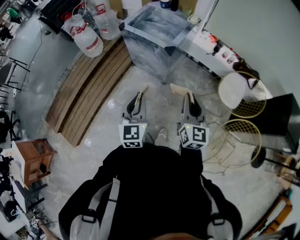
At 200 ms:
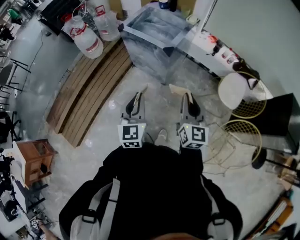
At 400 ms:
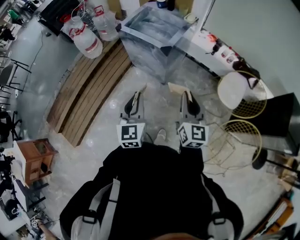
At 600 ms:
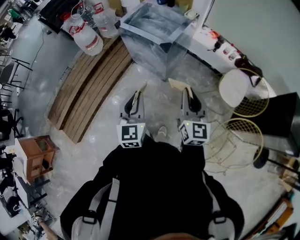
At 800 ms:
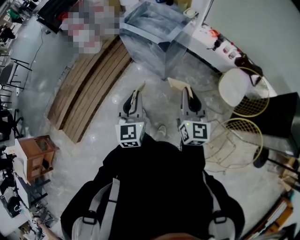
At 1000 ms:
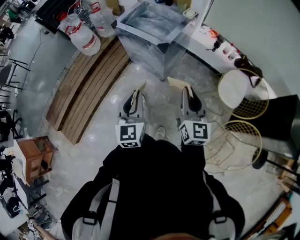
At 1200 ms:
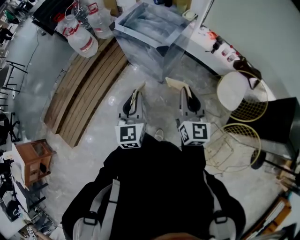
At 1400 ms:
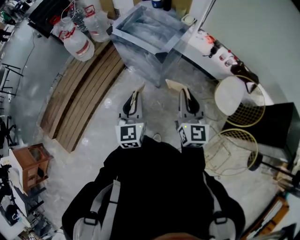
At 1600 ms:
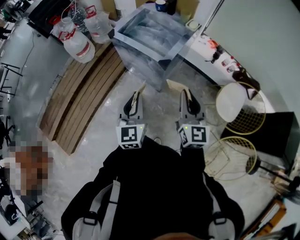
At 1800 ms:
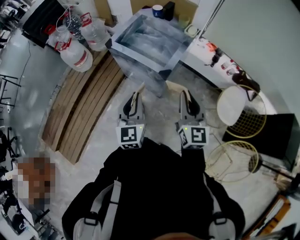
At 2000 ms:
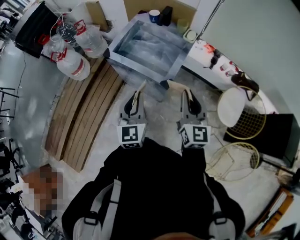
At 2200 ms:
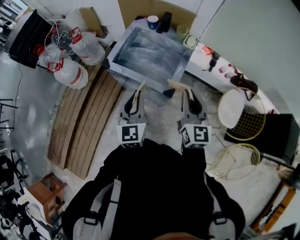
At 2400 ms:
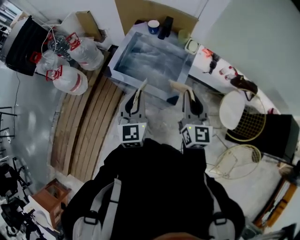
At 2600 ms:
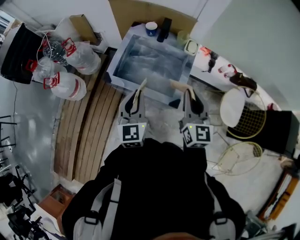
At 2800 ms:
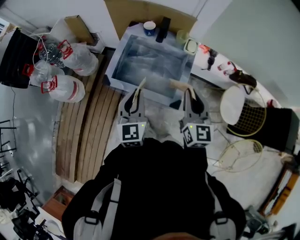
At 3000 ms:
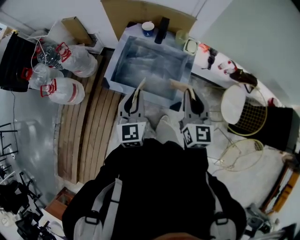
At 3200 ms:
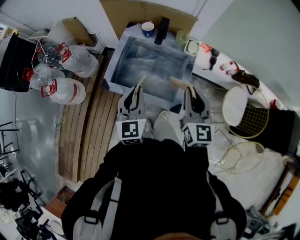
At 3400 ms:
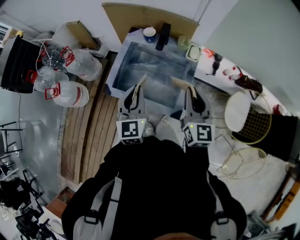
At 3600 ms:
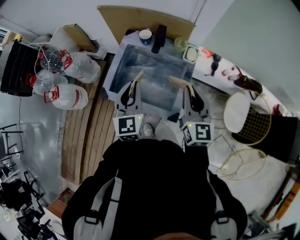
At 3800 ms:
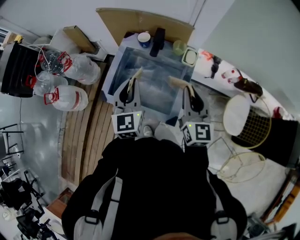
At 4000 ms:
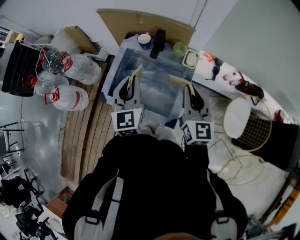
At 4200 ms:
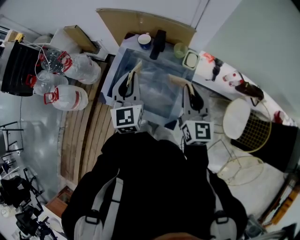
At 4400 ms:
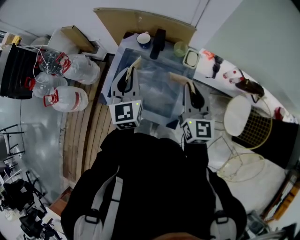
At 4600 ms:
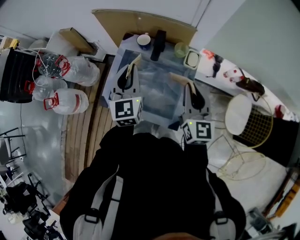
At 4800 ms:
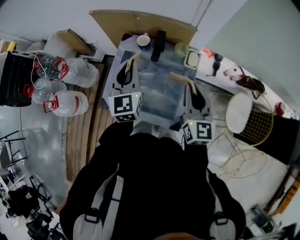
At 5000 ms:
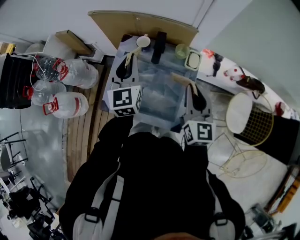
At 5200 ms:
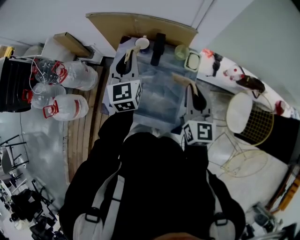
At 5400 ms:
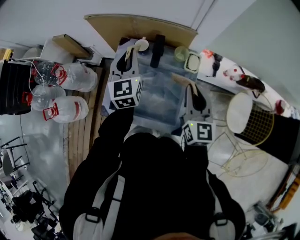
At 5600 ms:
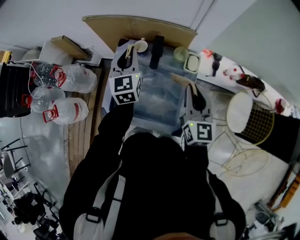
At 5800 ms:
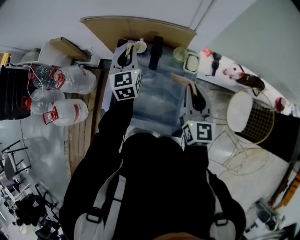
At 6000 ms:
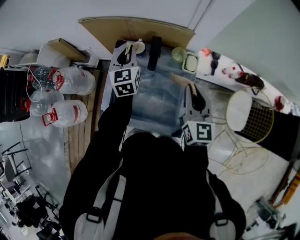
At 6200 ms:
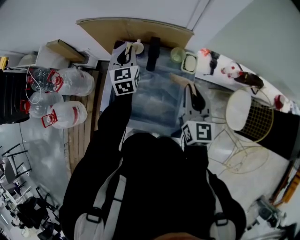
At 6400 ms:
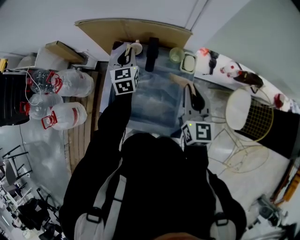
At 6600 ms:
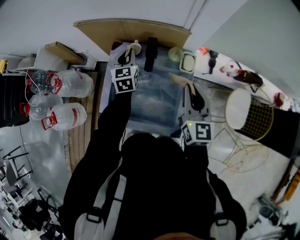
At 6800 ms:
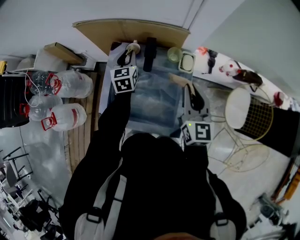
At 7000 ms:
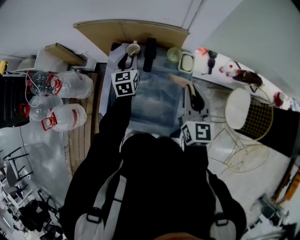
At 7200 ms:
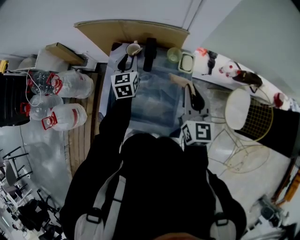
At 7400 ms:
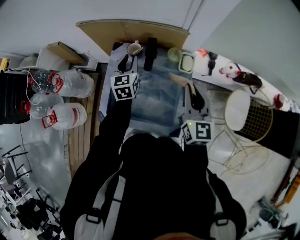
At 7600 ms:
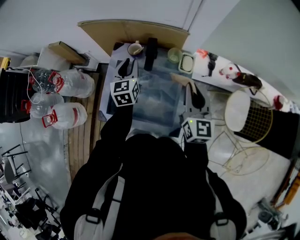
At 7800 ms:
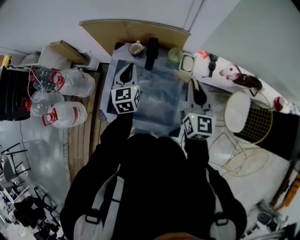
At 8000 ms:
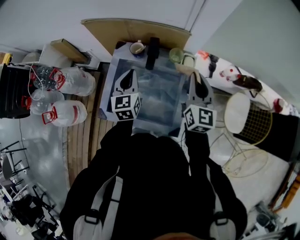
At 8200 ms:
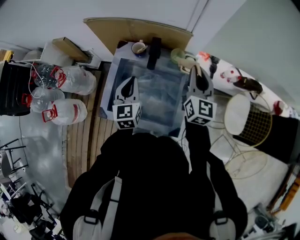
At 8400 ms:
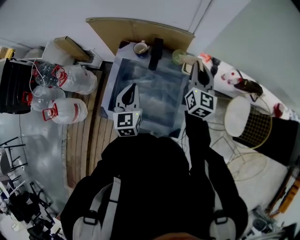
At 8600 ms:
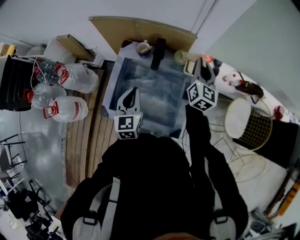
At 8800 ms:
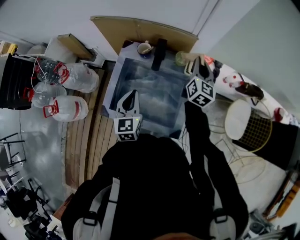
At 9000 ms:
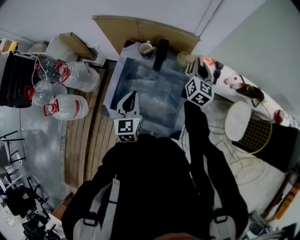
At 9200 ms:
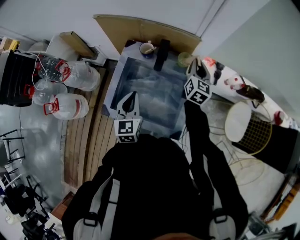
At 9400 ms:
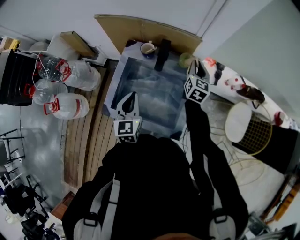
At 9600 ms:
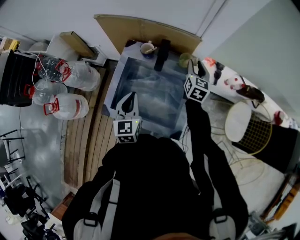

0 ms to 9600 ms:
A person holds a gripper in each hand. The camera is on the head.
0 ms to 1600 ms: The grippers both shift forward by approximately 15 cm.
1600 ms to 3200 ms: Both grippers move forward, approximately 35 cm.
3200 ms to 4800 ms: The left gripper is displaced forward by about 20 cm; the right gripper goes about 15 cm forward.
4800 ms to 6400 ms: The left gripper is displaced forward and downward by roughly 20 cm; the right gripper goes some 5 cm forward.
6400 ms to 8000 ms: The left gripper travels backward by roughly 10 cm.
8000 ms to 9600 ms: The left gripper travels backward by roughly 10 cm, while the right gripper moves forward and downward, approximately 15 cm, and opens its fingers.

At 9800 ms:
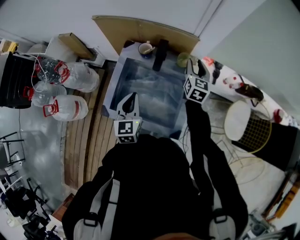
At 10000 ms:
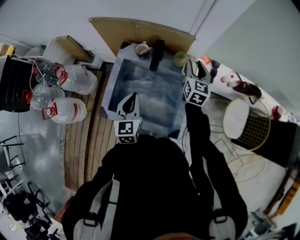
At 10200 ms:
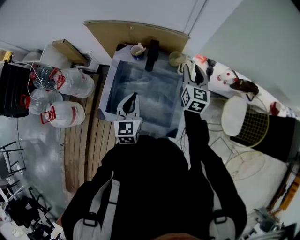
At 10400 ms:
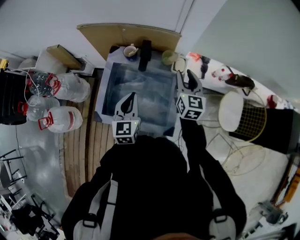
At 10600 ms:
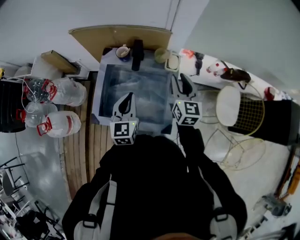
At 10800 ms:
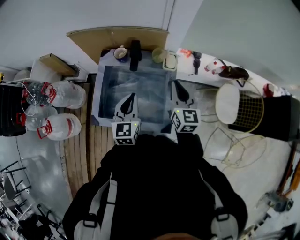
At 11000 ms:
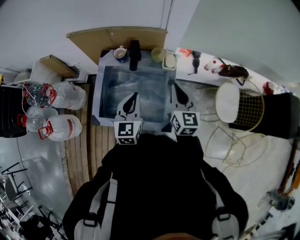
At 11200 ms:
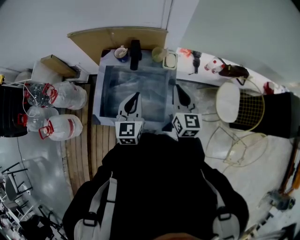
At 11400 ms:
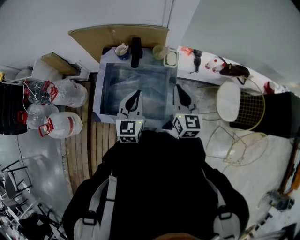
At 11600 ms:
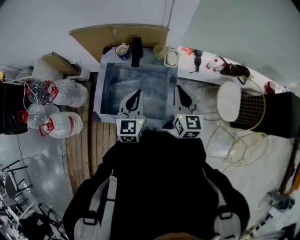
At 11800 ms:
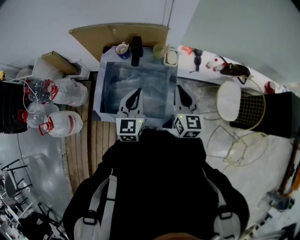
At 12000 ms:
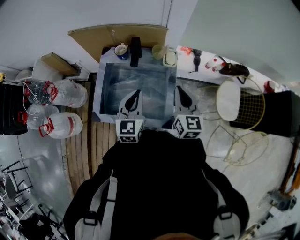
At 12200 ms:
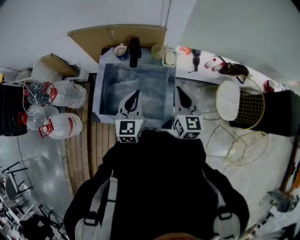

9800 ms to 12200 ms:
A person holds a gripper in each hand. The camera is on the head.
9800 ms to 11000 ms: The left gripper moves to the right, roughly 10 cm, while the right gripper goes roughly 20 cm backward, and closes its fingers.
11000 ms to 12200 ms: There are only small adjustments of the grippers.

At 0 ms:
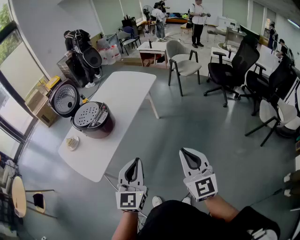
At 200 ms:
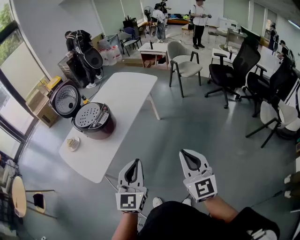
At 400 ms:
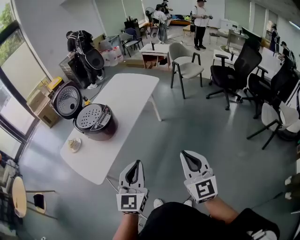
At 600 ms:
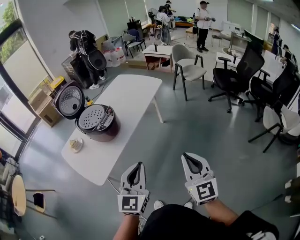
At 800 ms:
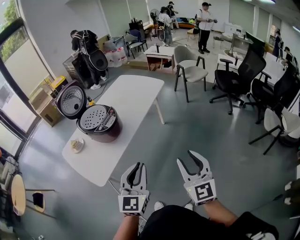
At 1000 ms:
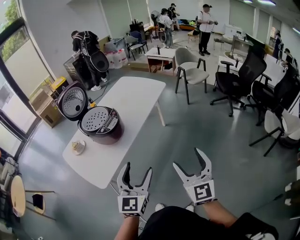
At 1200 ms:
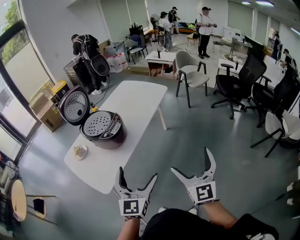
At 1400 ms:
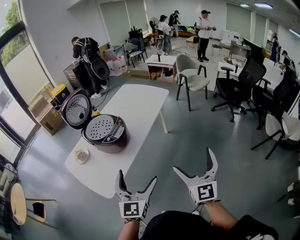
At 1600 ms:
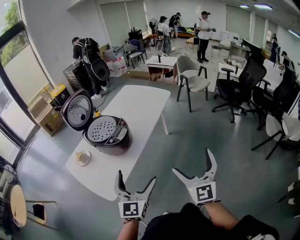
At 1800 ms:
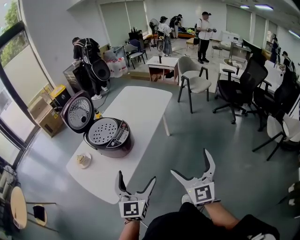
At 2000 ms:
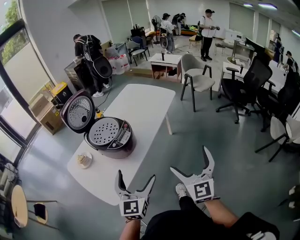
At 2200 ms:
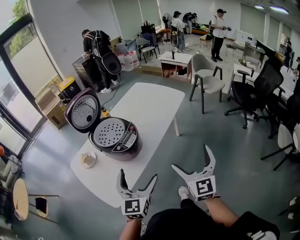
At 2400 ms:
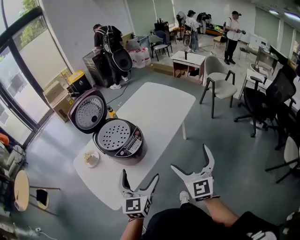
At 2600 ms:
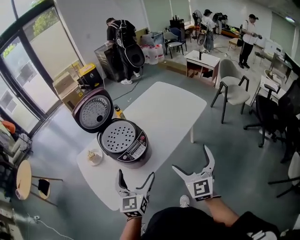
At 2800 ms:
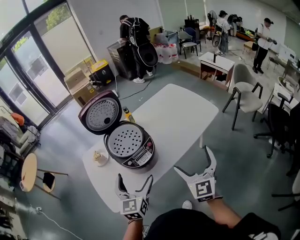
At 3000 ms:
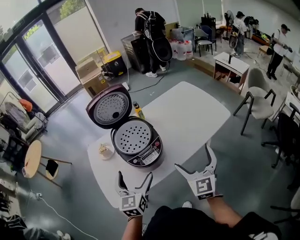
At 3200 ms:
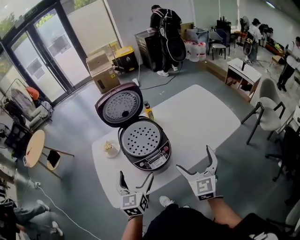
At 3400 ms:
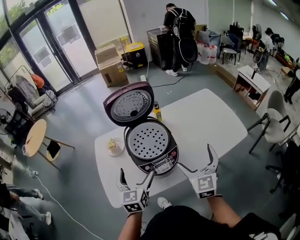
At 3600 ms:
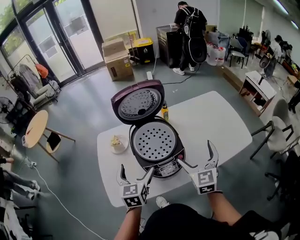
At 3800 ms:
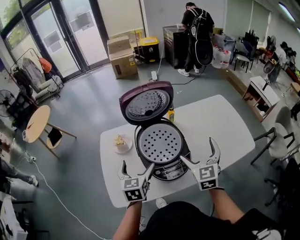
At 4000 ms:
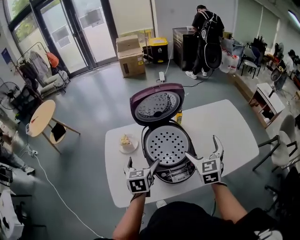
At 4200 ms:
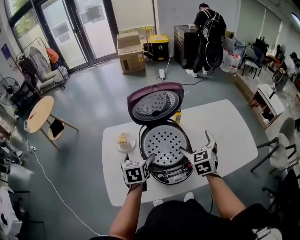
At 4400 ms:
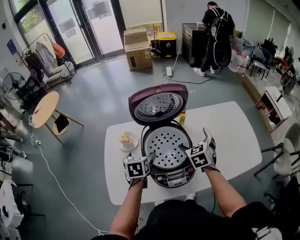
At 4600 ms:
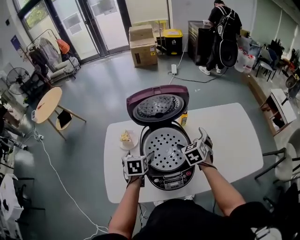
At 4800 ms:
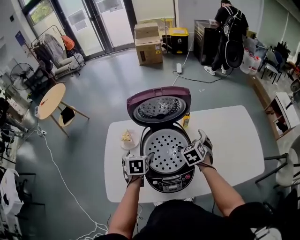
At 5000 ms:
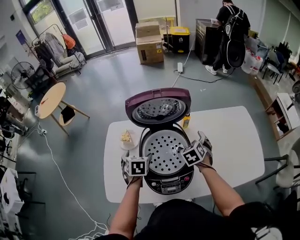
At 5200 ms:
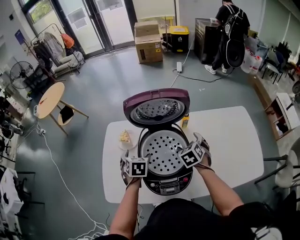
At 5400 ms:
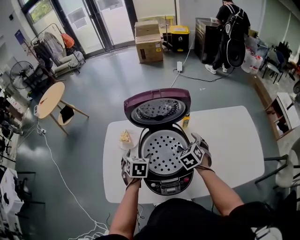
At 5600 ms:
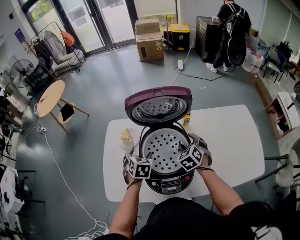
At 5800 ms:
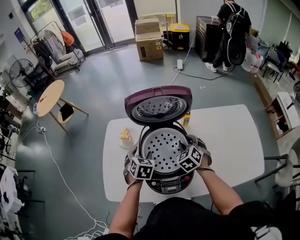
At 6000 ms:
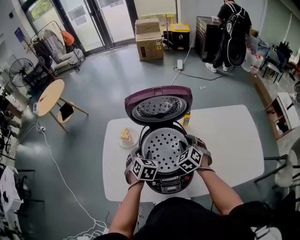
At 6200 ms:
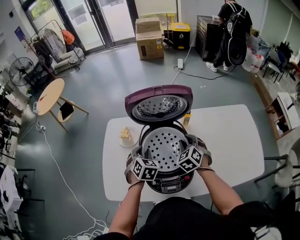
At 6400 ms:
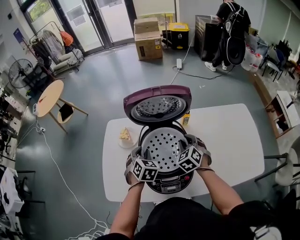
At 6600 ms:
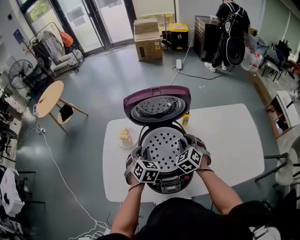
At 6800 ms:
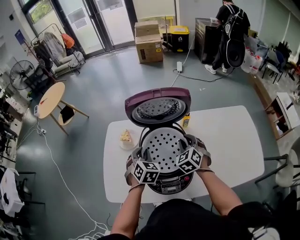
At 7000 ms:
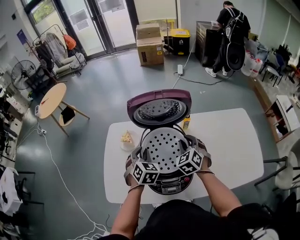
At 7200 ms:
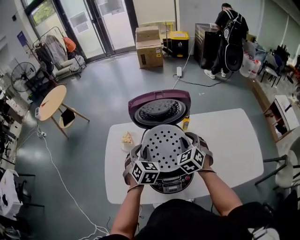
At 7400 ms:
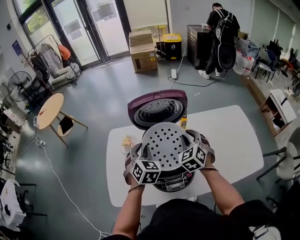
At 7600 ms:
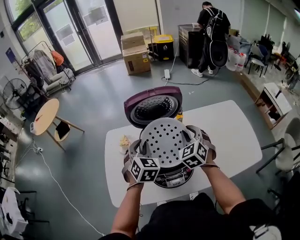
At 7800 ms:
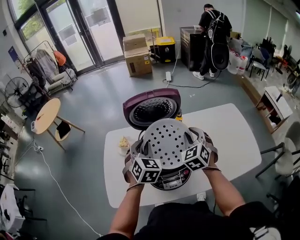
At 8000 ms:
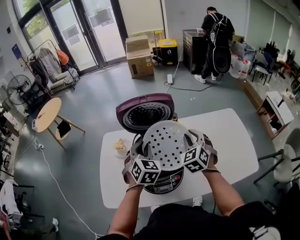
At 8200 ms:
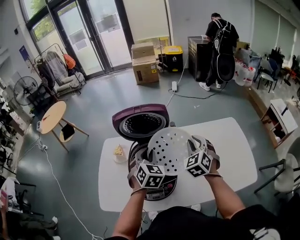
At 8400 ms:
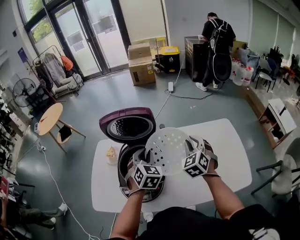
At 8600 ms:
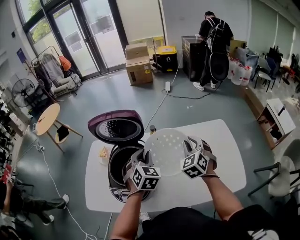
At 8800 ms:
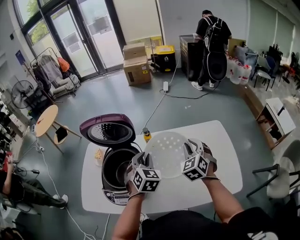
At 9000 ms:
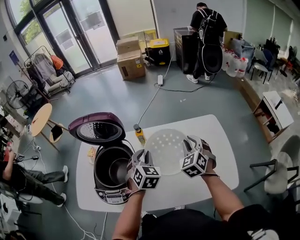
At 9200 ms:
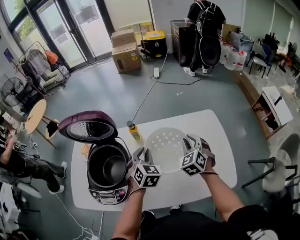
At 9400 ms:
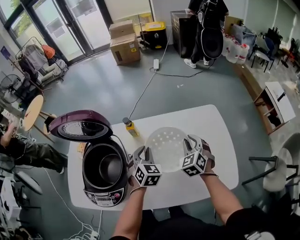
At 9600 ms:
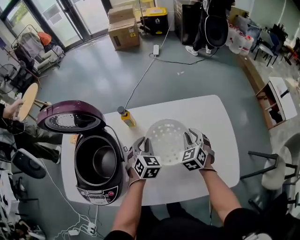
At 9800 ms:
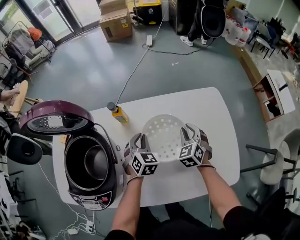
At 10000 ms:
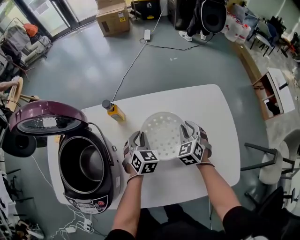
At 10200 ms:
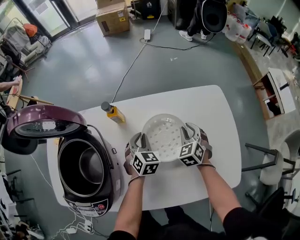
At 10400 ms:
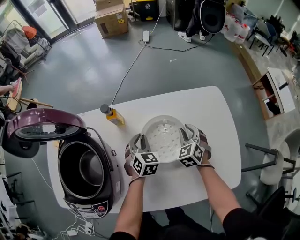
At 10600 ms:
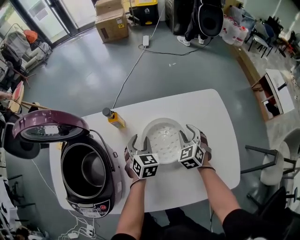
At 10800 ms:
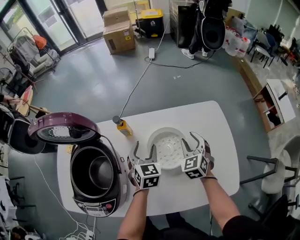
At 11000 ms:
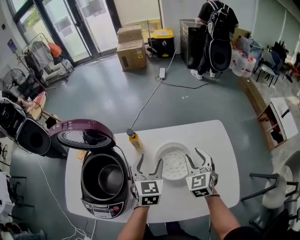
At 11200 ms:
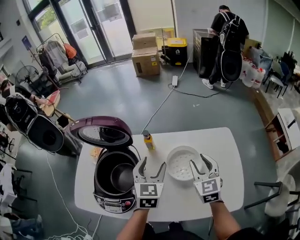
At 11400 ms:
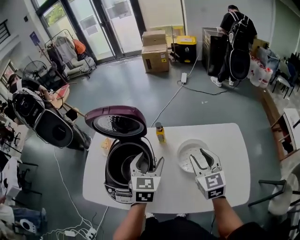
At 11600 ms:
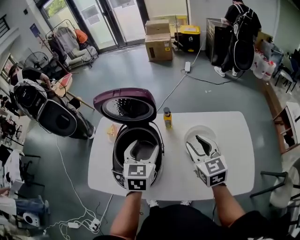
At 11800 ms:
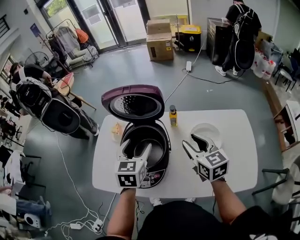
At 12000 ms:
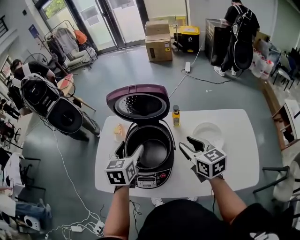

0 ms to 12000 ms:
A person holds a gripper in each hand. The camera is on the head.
0 ms to 1600 ms: The two grippers go about 15 cm to the left and forward. The left gripper opens its fingers; the right gripper opens.
1600 ms to 3000 ms: The right gripper shifts by approximately 35 cm, and swivels approximately 30 degrees; the left gripper shifts by some 25 cm, and turns by about 40 degrees.
3000 ms to 4400 ms: The right gripper is displaced forward by about 30 cm, and angles its fingers downward, by approximately 30 degrees. Meanwhile the left gripper moves forward, to the left and downward, about 25 cm, and tilts its fingers approximately 30 degrees downward.
4400 ms to 6000 ms: The left gripper swivels some 30 degrees, and closes its fingers; the right gripper goes some 5 cm downward, changes its angle by some 20 degrees, and closes.
6000 ms to 7600 ms: Both grippers travel together upward, approximately 15 cm.
7600 ms to 9000 ms: The two grippers go roughly 30 cm to the right.
9000 ms to 10400 ms: The right gripper shifts about 25 cm downward, while the left gripper travels downward and forward by about 25 cm.
10400 ms to 12000 ms: The left gripper moves to the left and upward, some 40 cm, changes its angle by approximately 30 degrees, and opens up. Meanwhile the right gripper is displaced upward and to the left by approximately 40 cm, and swivels some 50 degrees.
